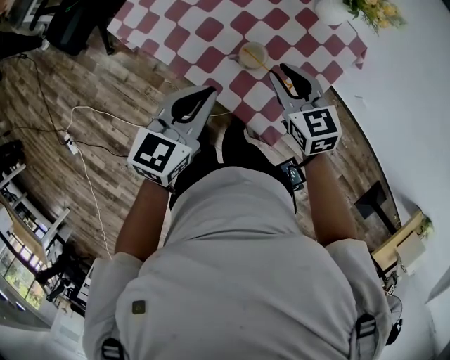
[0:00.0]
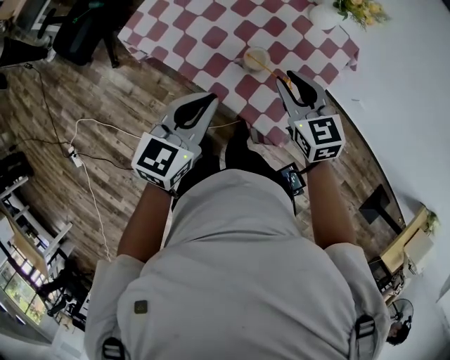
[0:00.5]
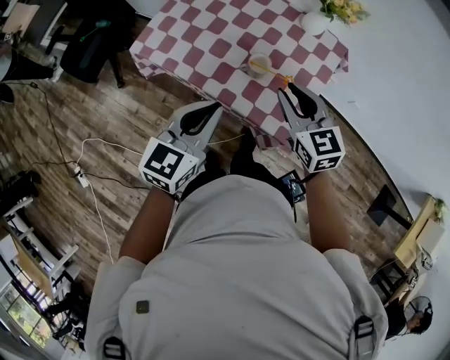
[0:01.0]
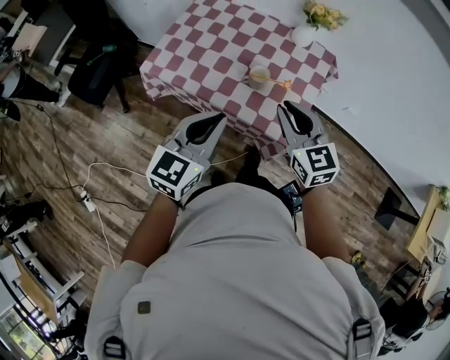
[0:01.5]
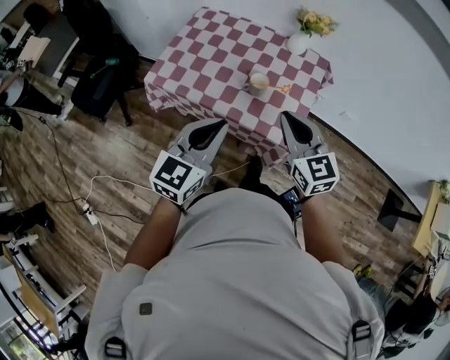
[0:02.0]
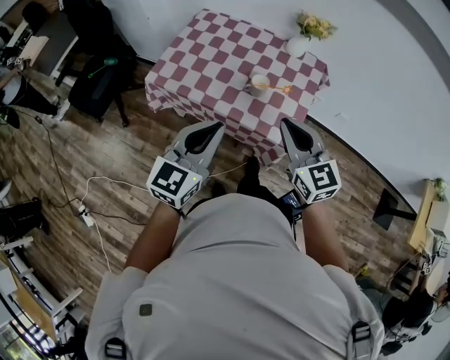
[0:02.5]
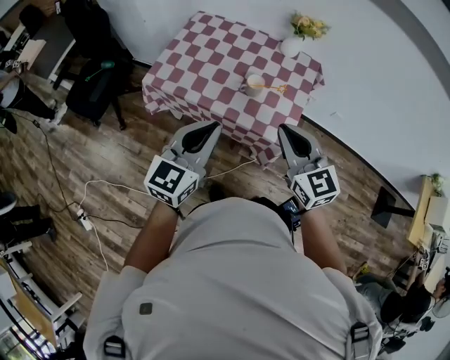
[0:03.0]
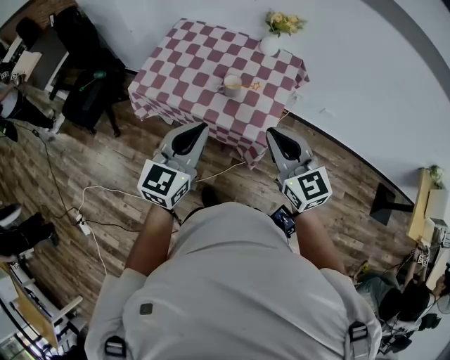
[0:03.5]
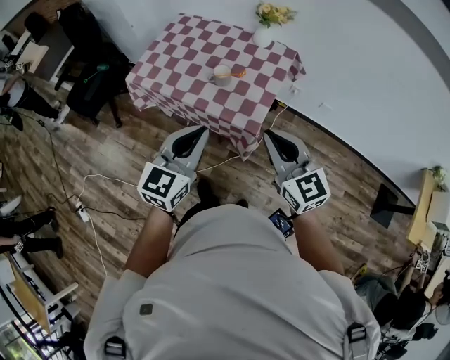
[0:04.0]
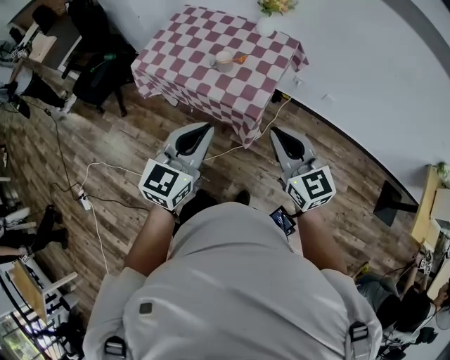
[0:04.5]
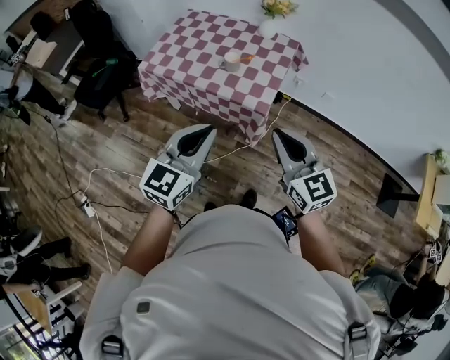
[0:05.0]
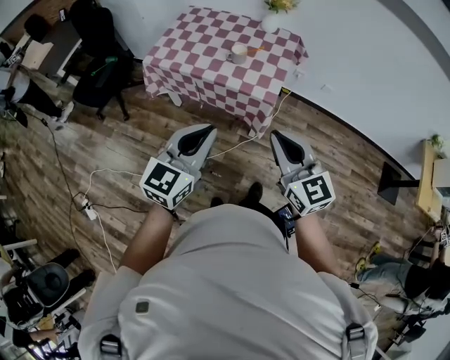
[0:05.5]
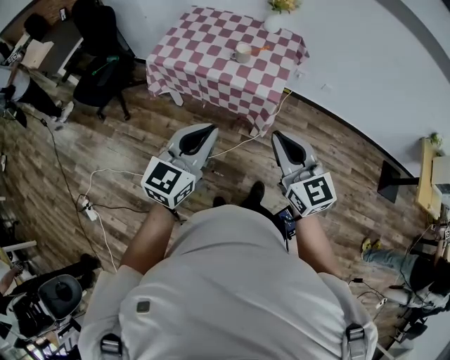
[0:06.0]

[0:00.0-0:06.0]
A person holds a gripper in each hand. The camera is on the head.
0:00.0 to 0:02.0: Both grippers travel together backward and upward, about 25 cm. The right gripper turns by roughly 30 degrees, and closes up, while the left gripper rotates approximately 20 degrees.
0:02.0 to 0:04.0: The left gripper shifts roughly 15 cm to the right and backward. Meanwhile the right gripper is displaced backward and to the right by about 20 cm.
0:04.0 to 0:06.0: The two grippers go some 25 cm backward and to the left.

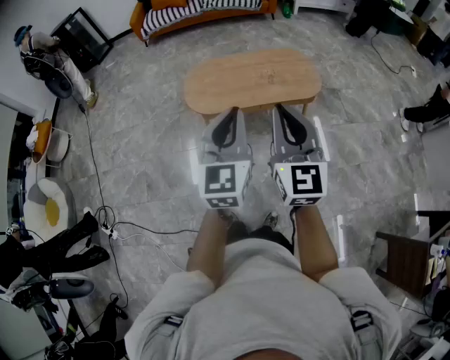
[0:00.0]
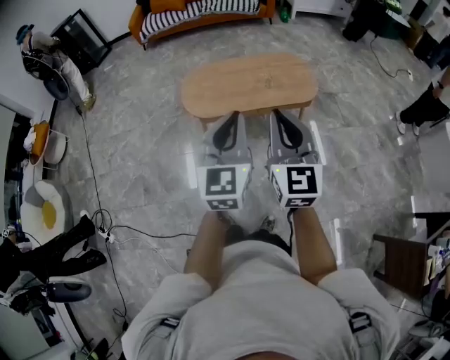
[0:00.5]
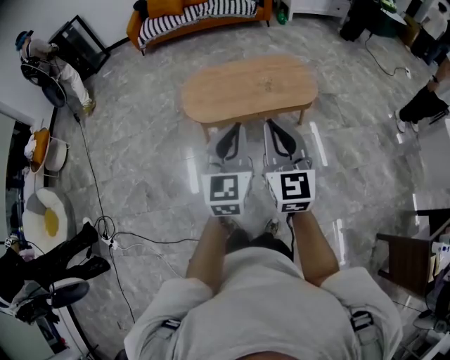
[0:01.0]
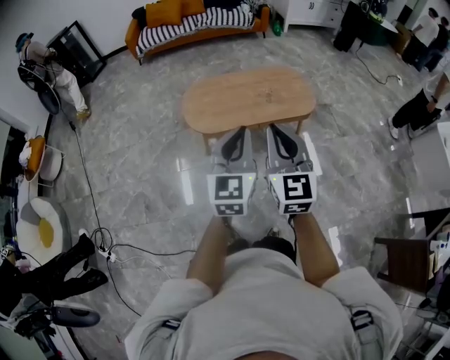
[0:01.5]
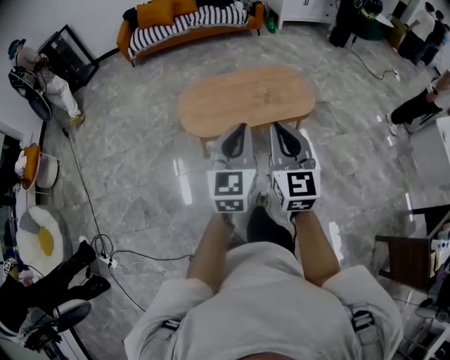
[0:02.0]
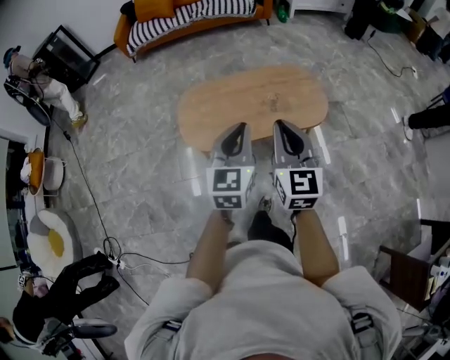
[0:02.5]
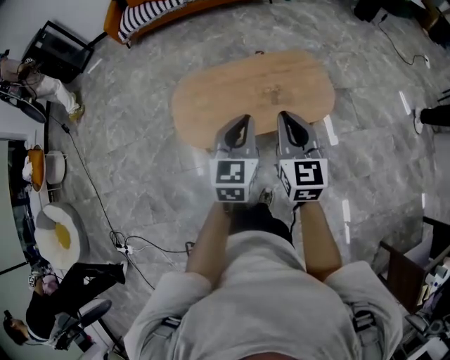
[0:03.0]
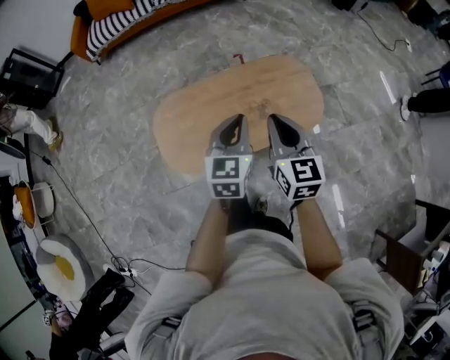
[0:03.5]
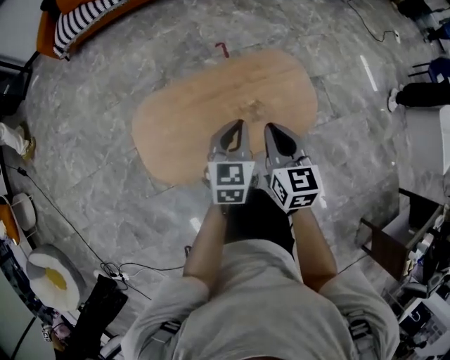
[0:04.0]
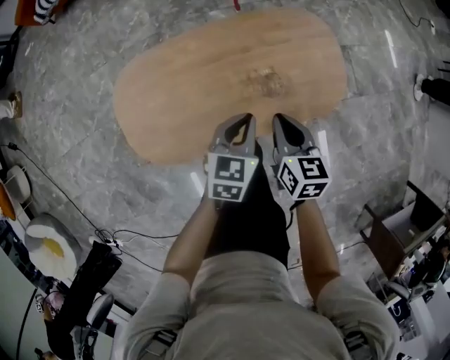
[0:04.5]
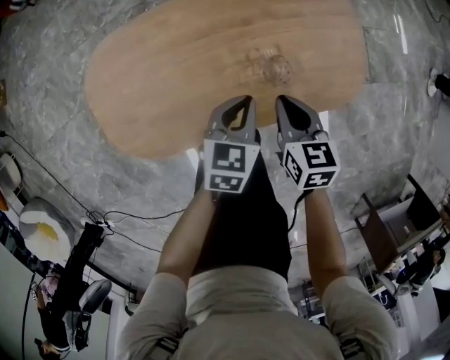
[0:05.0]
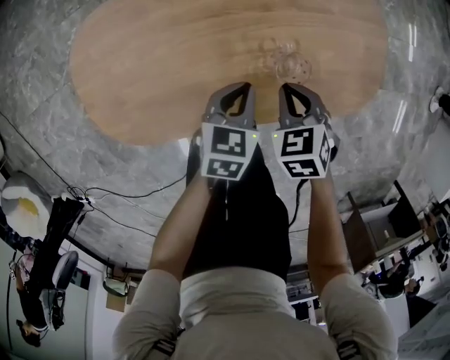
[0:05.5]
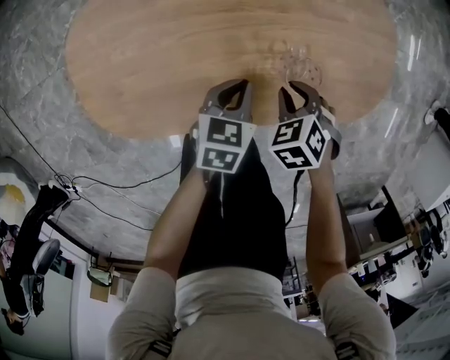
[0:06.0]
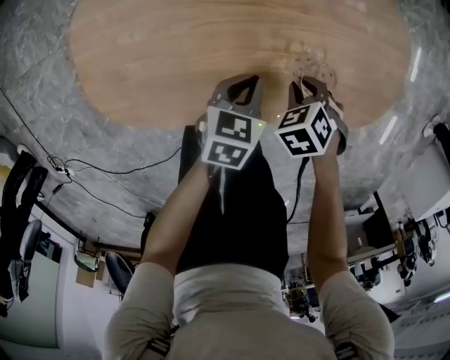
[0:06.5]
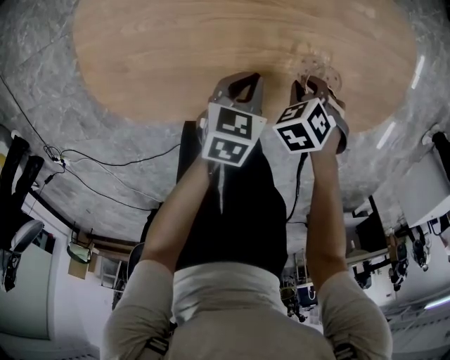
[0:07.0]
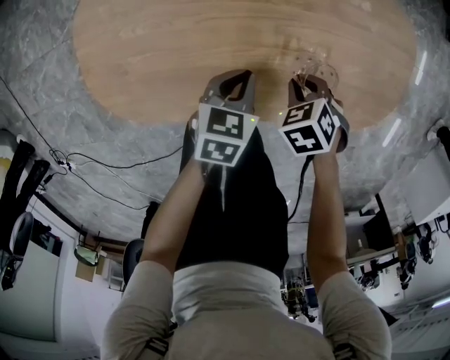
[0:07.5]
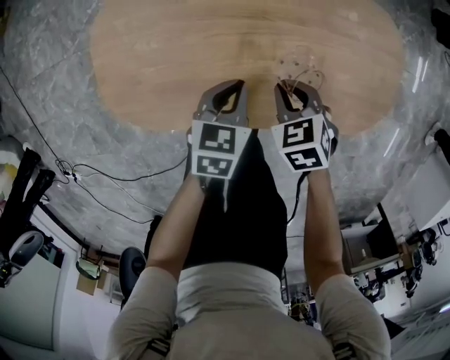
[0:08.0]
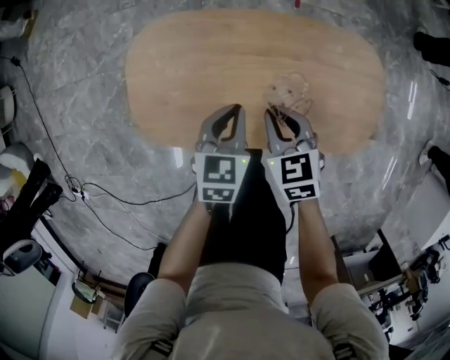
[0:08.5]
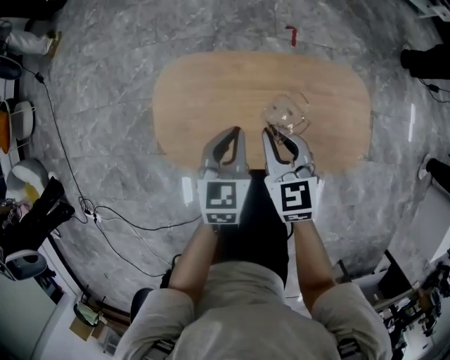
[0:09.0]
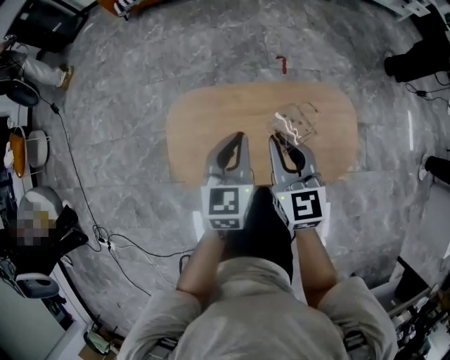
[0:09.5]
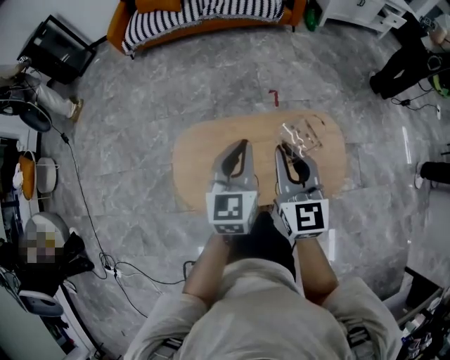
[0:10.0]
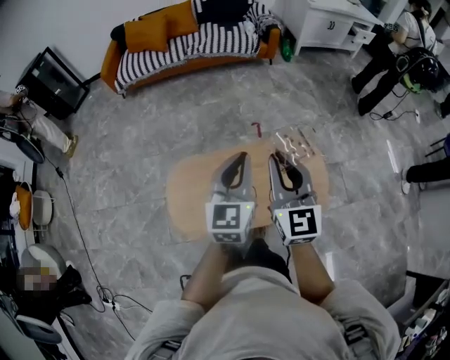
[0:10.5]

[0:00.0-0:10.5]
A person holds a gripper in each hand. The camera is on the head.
0:00.0 to 0:02.0: The left gripper travels forward and to the left by roughly 10 cm, while the right gripper is displaced to the left and forward by approximately 10 cm.
0:02.0 to 0:04.0: The pair of grippers is taken forward, approximately 50 cm. Both grippers move downward, about 20 cm. The left gripper turns by approximately 30 degrees; the right gripper turns by some 30 degrees.
0:04.0 to 0:06.5: Both grippers travel together downward, roughly 40 cm. The right gripper points its fingers roughly 60 degrees further downward, while the left gripper turns by some 30 degrees.
0:06.5 to 0:08.5: The grippers both shift upward by approximately 15 cm. The right gripper tilts its fingers some 40 degrees upward, while the left gripper swivels some 20 degrees.
0:08.5 to 0:10.5: Both grippers travel together upward, about 40 cm. The right gripper angles its fingers upward, by some 50 degrees. The left gripper points its fingers approximately 40 degrees further upward.

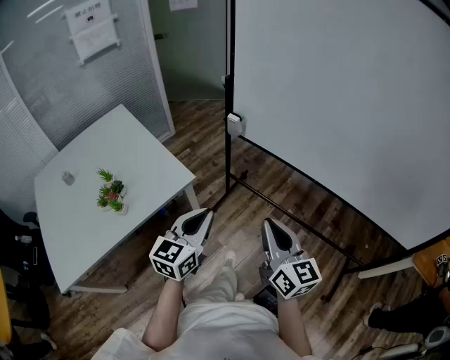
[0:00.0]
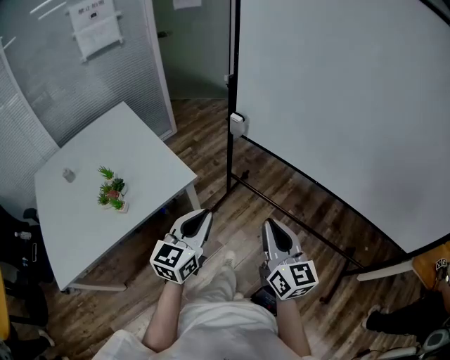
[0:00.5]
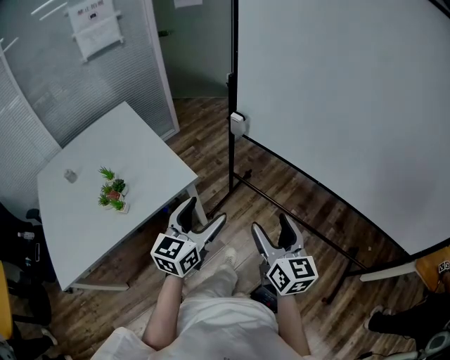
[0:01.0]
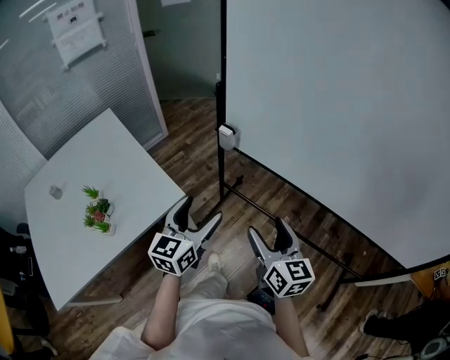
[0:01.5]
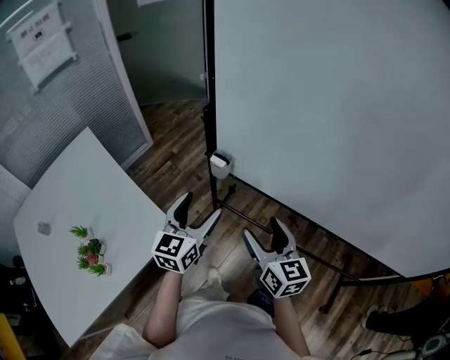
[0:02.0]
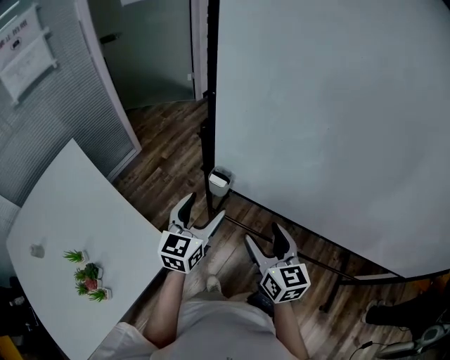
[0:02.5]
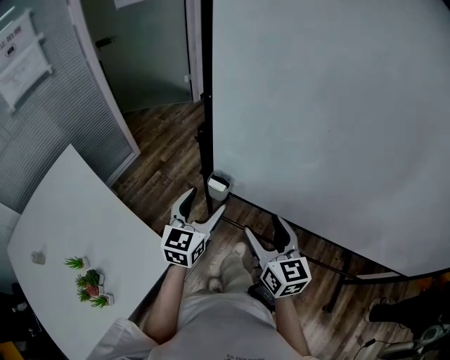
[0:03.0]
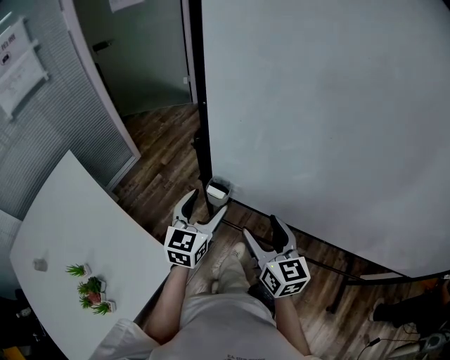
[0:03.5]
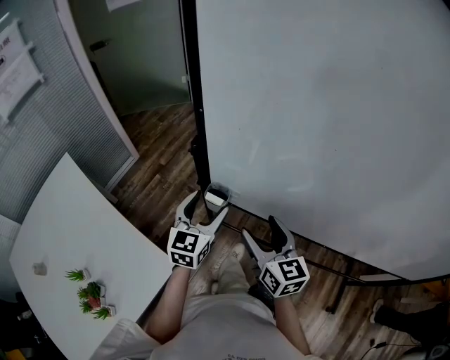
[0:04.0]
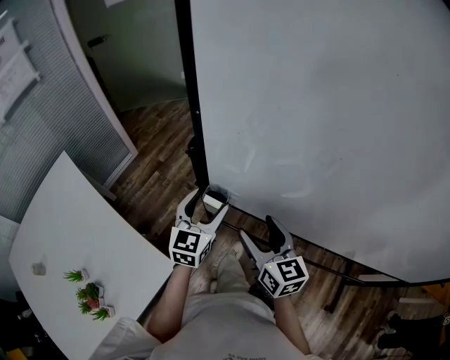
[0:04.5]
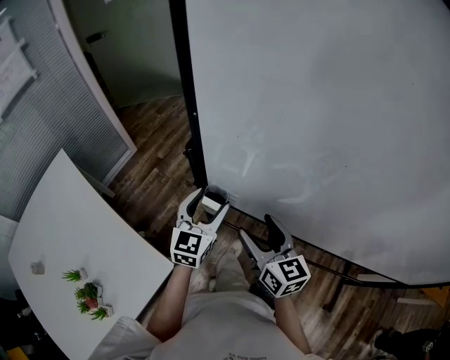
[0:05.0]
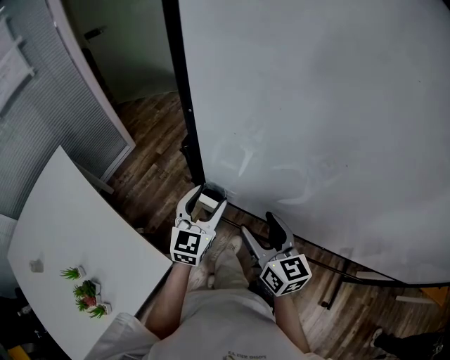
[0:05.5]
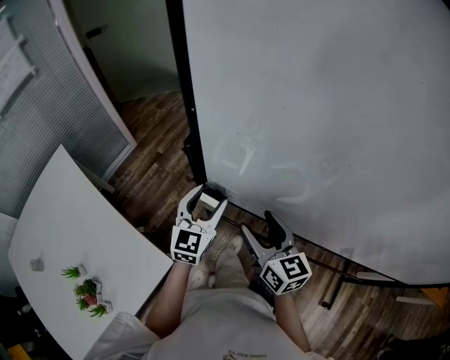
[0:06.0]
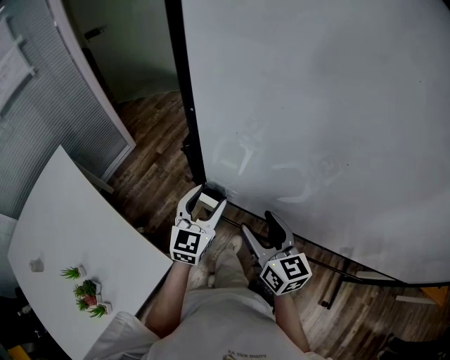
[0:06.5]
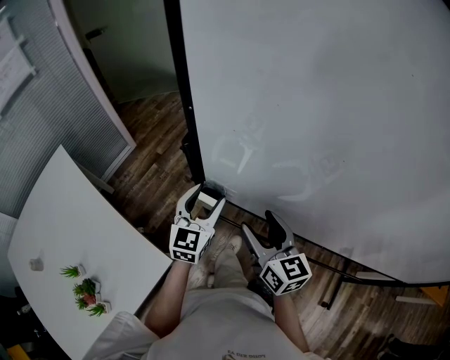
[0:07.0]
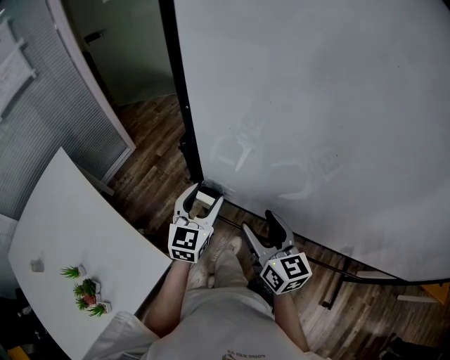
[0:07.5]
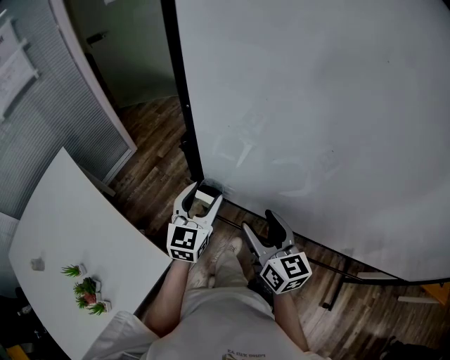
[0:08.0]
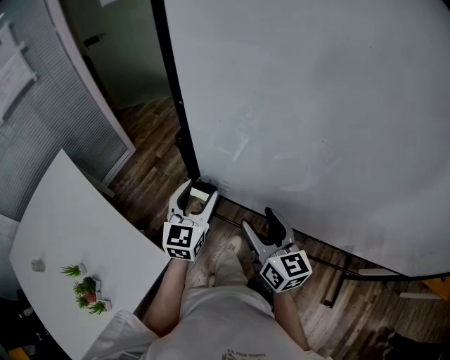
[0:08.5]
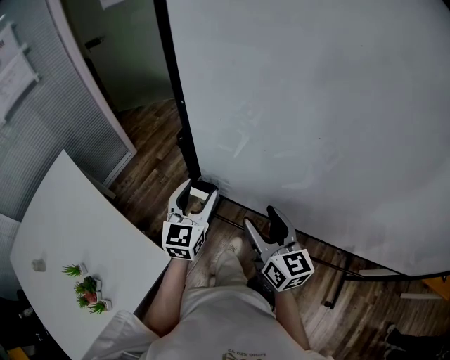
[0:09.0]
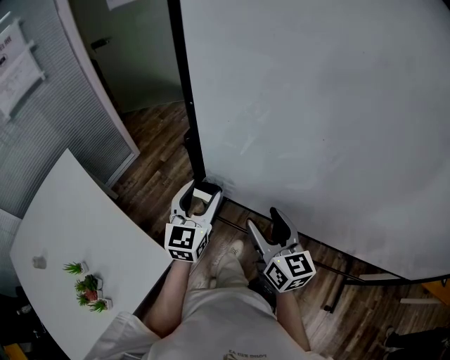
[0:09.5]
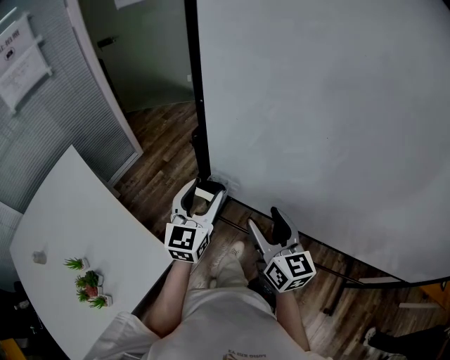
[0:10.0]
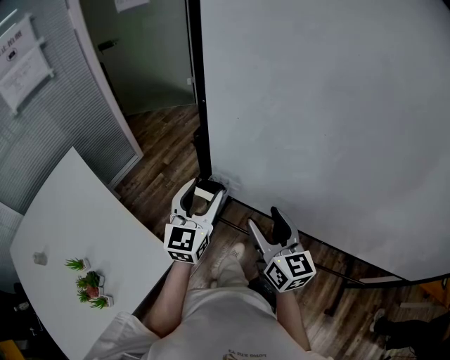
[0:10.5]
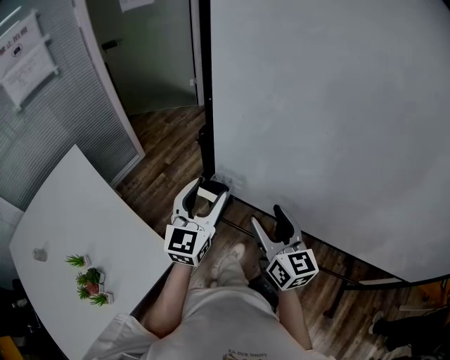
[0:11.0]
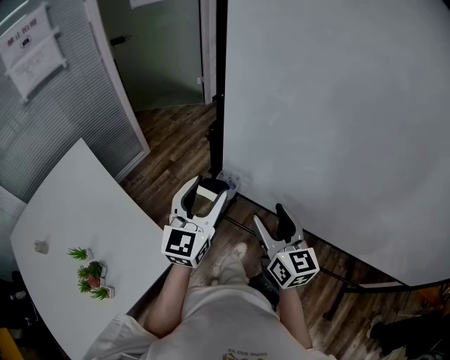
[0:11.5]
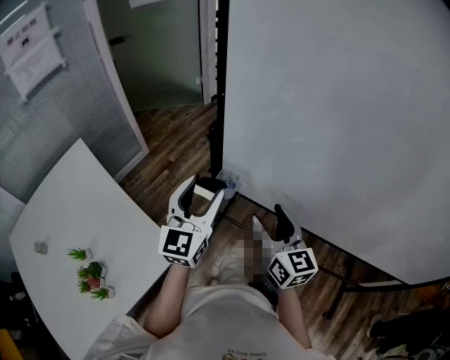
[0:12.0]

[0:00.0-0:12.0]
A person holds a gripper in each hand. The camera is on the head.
0:00.0 to 0:02.0: Both grippers move forward, approximately 30 cm. The left gripper opens up, while the right gripper opens.
0:02.0 to 0:04.0: The two grippers go some 15 cm forward.
0:04.0 to 0:08.0: The grippers move only a little.
0:08.0 to 0:10.0: The left gripper shifts by roughly 5 cm.
0:10.0 to 0:12.0: The left gripper shifts roughly 5 cm upward.
